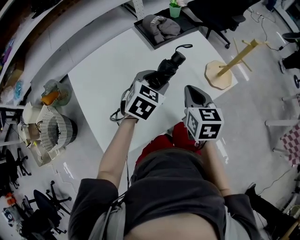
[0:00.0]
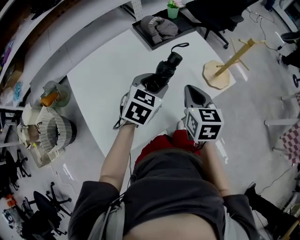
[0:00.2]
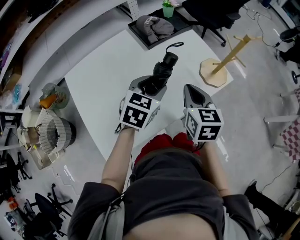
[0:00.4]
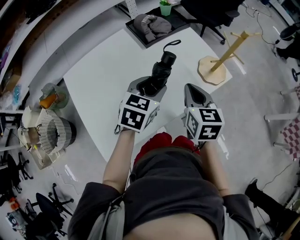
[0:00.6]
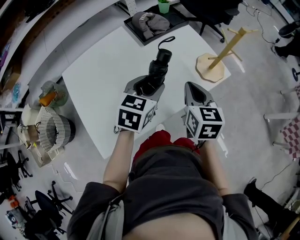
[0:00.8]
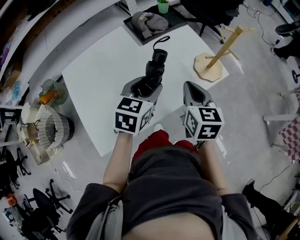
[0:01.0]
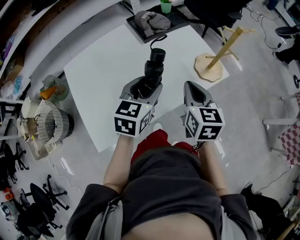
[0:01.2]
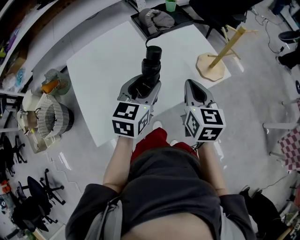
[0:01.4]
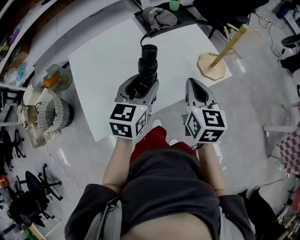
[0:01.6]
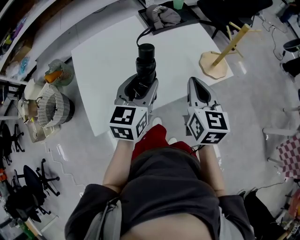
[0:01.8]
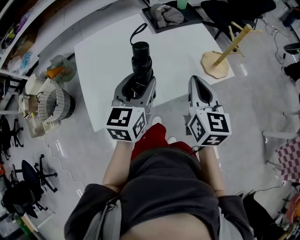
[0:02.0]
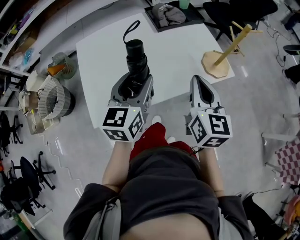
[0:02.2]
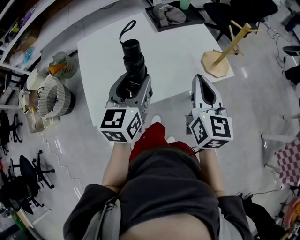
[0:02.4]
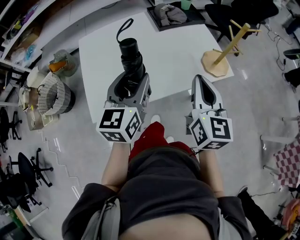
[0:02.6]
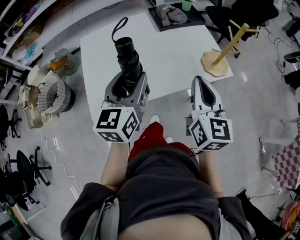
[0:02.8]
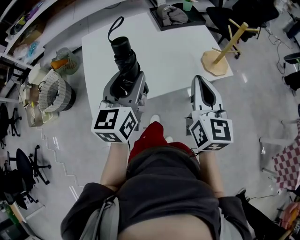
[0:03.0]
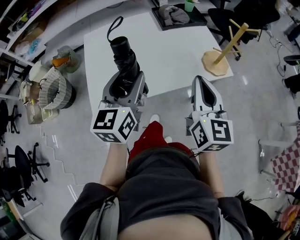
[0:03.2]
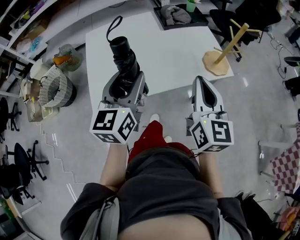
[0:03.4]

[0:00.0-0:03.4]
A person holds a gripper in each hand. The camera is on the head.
0:00.0 to 0:01.6: The left gripper is displaced backward and upward by about 10 cm, and changes its angle by some 30 degrees; the right gripper goes approximately 5 cm to the right.
0:01.6 to 0:03.4: The left gripper travels backward, upward and to the left by about 15 cm, and swivels about 20 degrees. The right gripper travels backward and upward by about 10 cm.

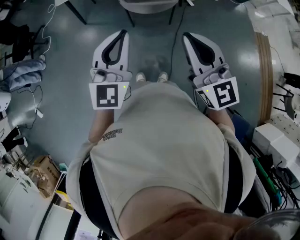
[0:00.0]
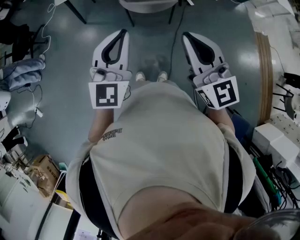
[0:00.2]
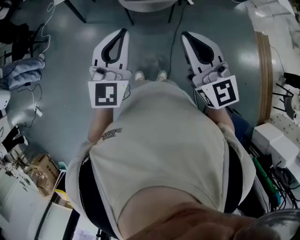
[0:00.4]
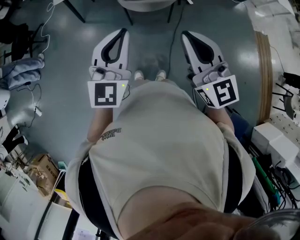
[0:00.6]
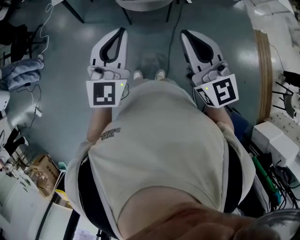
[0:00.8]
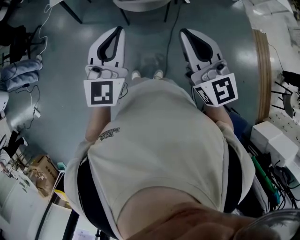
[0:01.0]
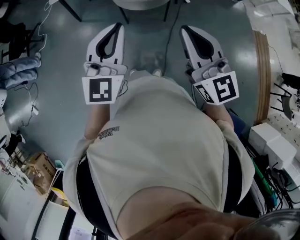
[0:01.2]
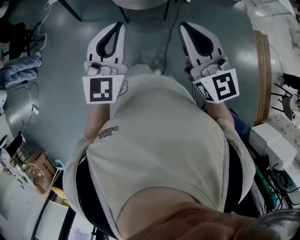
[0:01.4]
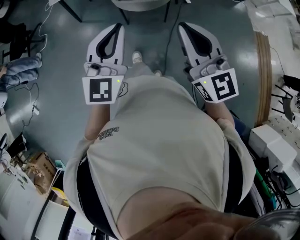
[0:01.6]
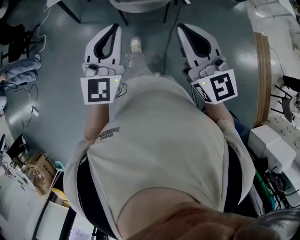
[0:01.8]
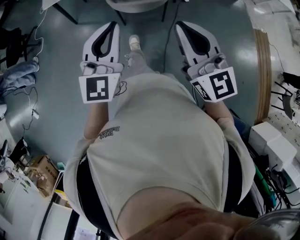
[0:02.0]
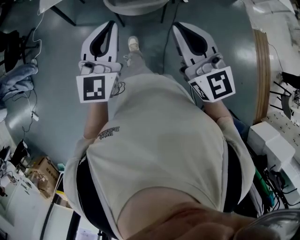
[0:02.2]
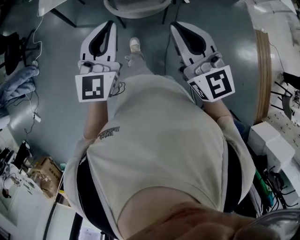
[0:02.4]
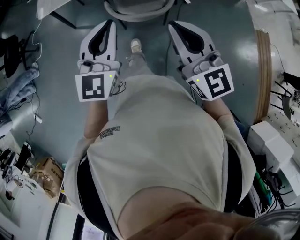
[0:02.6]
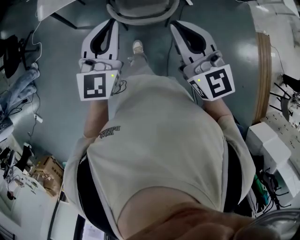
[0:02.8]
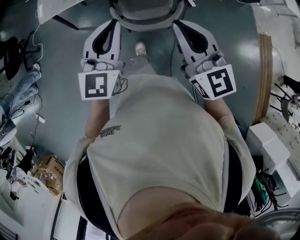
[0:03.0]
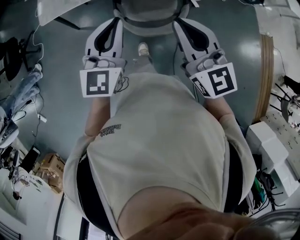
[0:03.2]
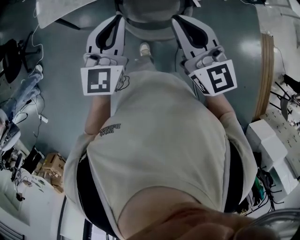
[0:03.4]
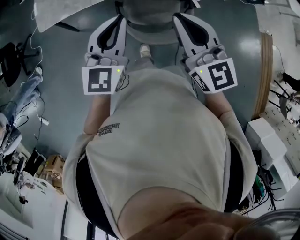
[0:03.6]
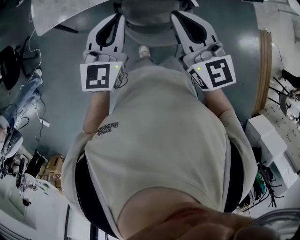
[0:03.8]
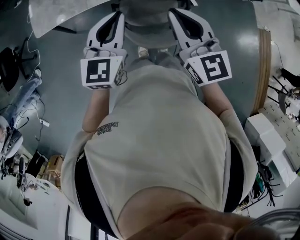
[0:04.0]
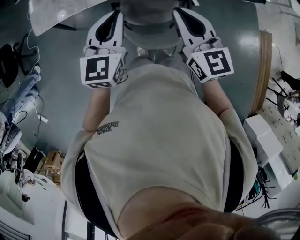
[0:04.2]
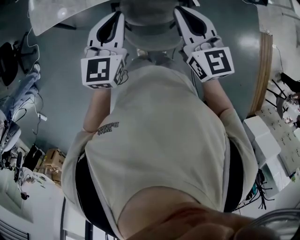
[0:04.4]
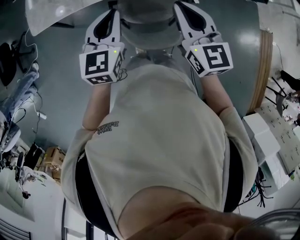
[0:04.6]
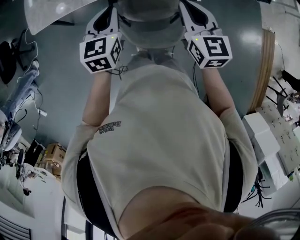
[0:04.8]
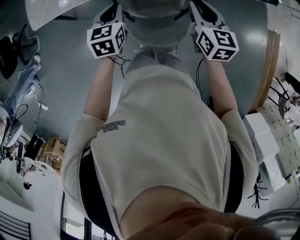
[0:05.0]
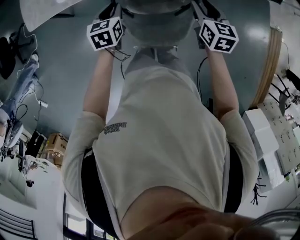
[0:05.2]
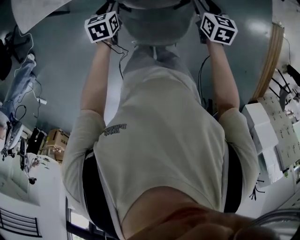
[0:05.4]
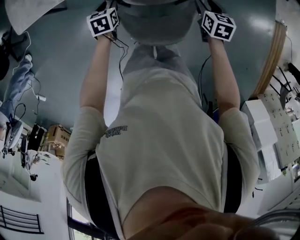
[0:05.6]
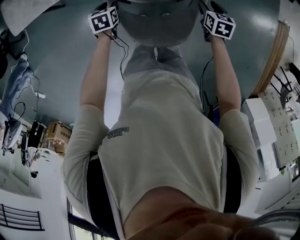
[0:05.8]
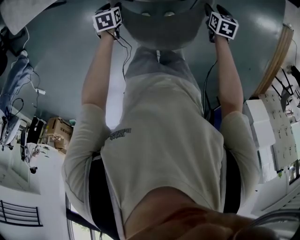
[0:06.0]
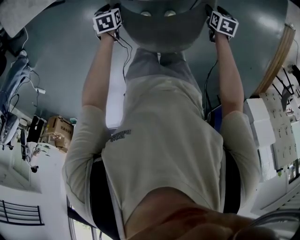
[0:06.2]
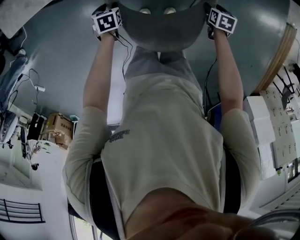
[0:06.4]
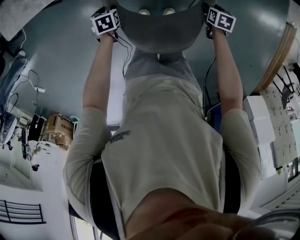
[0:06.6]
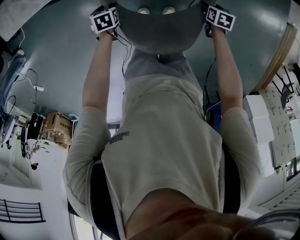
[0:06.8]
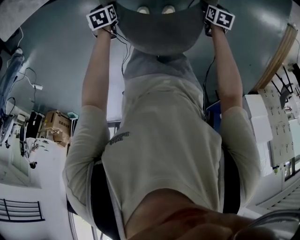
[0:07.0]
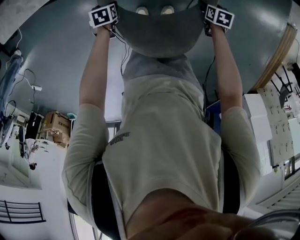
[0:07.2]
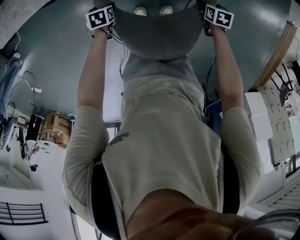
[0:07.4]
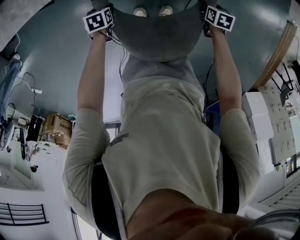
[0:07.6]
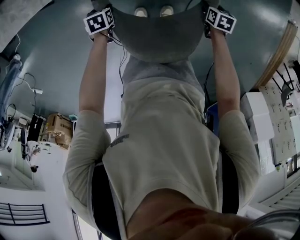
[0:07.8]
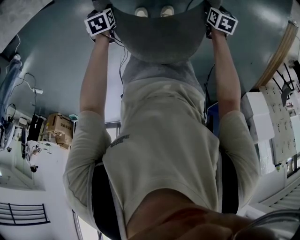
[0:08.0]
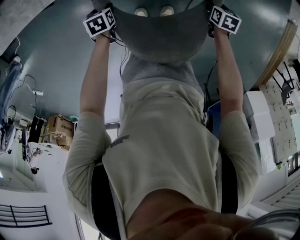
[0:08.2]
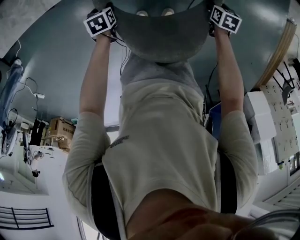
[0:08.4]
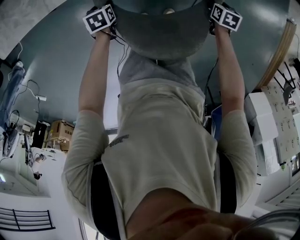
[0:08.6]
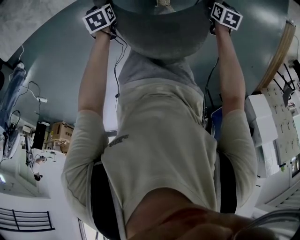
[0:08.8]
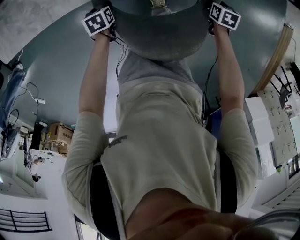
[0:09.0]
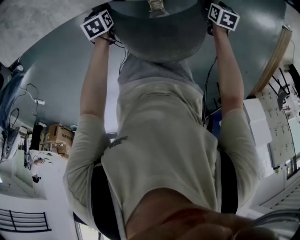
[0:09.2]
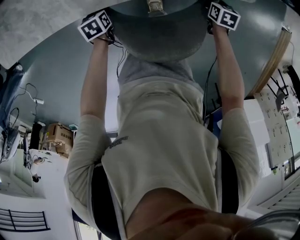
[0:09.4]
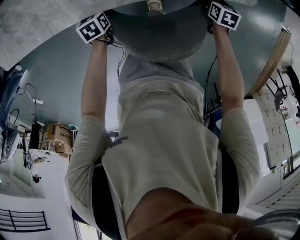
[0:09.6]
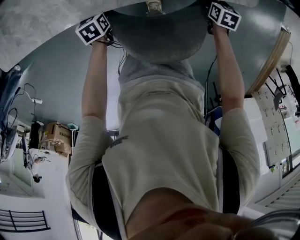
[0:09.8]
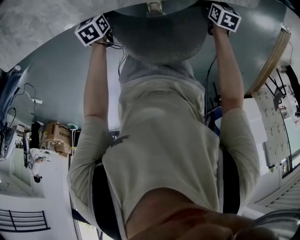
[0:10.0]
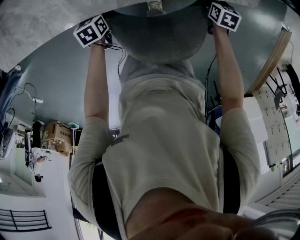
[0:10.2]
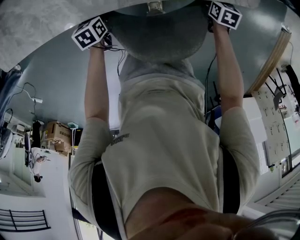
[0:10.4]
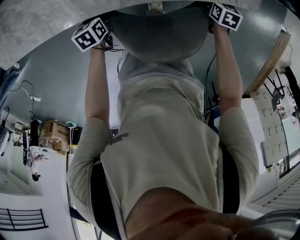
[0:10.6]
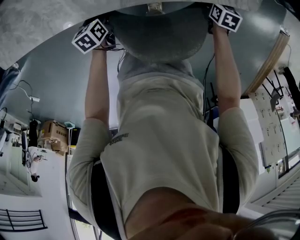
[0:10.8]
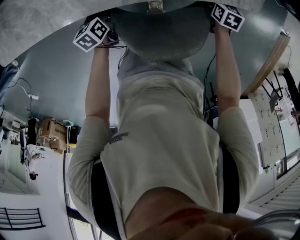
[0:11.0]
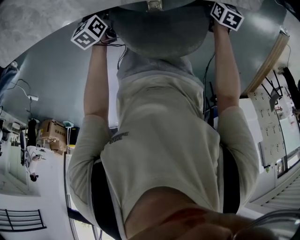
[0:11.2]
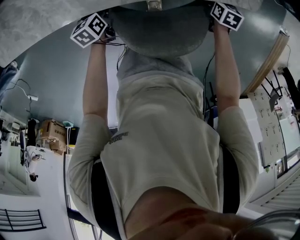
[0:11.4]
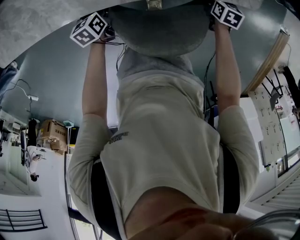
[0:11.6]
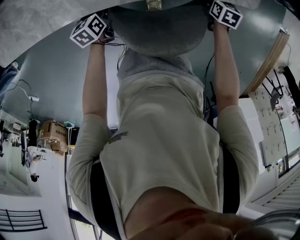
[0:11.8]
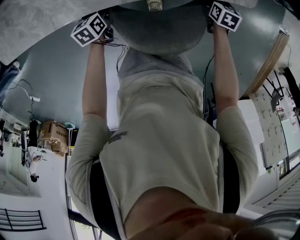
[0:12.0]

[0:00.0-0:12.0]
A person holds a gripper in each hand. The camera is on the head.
0:00.0 to 0:01.6: Both grippers move to the right, about 5 cm.
0:01.6 to 0:03.0: Both grippers travel together forward, about 30 cm.
0:03.0 to 0:04.4: Both grippers move forward, about 20 cm.
0:04.4 to 0:06.0: The left gripper goes approximately 50 cm downward, tips its fingers downward by about 50 degrees, and opens, while the right gripper is displaced downward and to the right by roughly 50 cm, tips its fingers downward by about 50 degrees, and opens up.
0:06.0 to 0:07.6: The two grippers go approximately 10 cm downward.
0:07.6 to 0:09.0: The left gripper shifts by some 10 cm, while the right gripper shifts by some 10 cm.
0:09.0 to 0:10.4: The right gripper shifts about 10 cm forward, while the left gripper shifts by some 5 cm.
0:10.4 to 0:12.0: There are only small adjustments of the grippers.

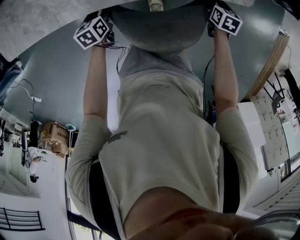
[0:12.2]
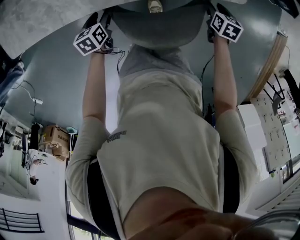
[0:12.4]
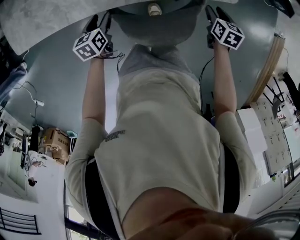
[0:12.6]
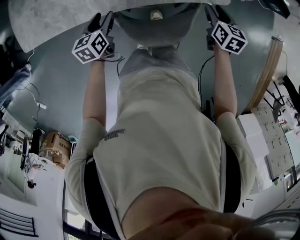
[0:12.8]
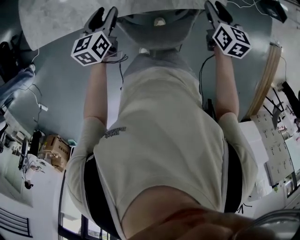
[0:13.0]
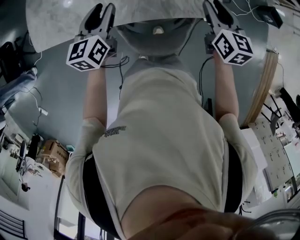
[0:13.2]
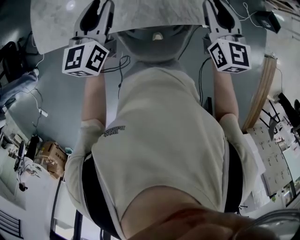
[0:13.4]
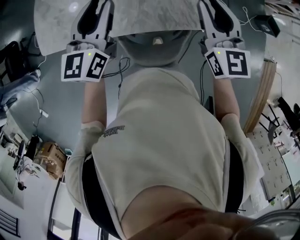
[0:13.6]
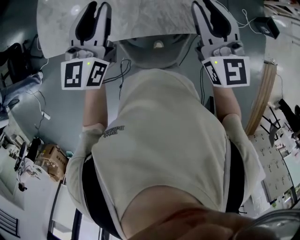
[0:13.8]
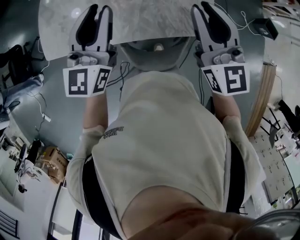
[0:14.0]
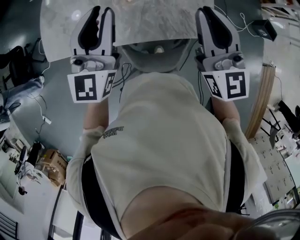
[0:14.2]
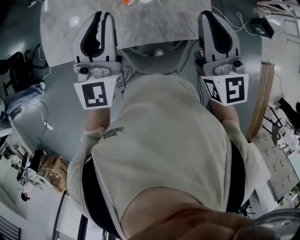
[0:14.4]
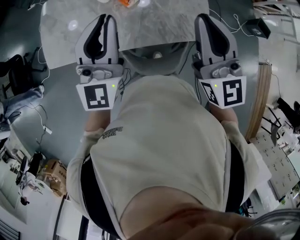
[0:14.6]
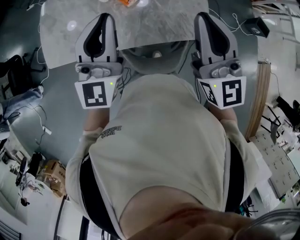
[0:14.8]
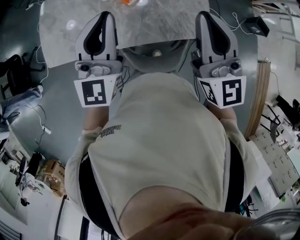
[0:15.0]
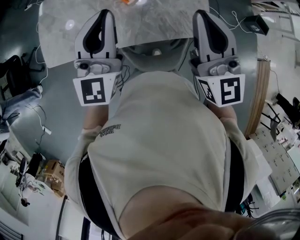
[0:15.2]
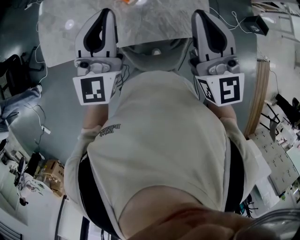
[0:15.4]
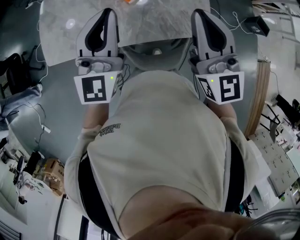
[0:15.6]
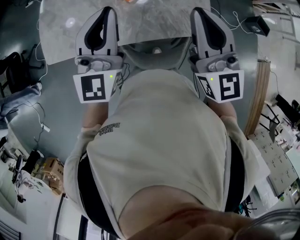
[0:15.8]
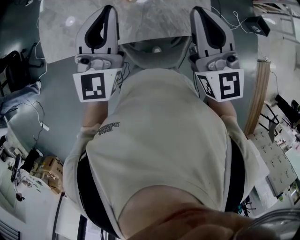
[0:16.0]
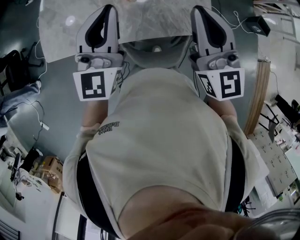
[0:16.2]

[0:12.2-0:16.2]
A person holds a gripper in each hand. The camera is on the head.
0:12.2 to 0:13.6: The grippers both shift upward by some 50 cm. The left gripper tips its fingers upward by some 50 degrees, and closes. The right gripper tips its fingers upward by some 60 degrees, and closes its fingers.
0:13.6 to 0:14.8: The right gripper travels upward, to the left and backward by some 15 cm; the left gripper travels upward by some 10 cm, changes its angle by roughly 30 degrees, and closes its fingers.
0:14.8 to 0:16.2: There are only small adjustments of the grippers.

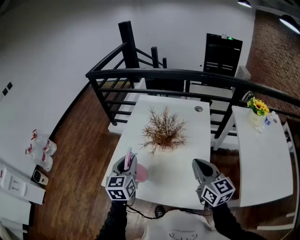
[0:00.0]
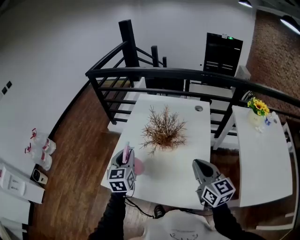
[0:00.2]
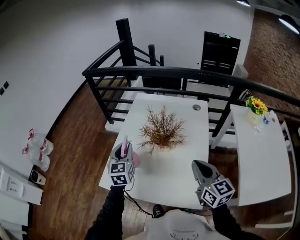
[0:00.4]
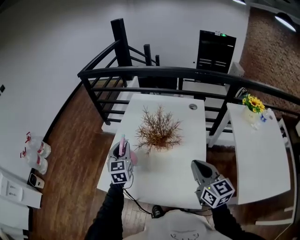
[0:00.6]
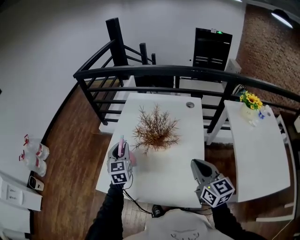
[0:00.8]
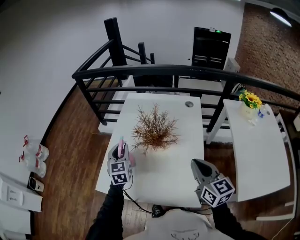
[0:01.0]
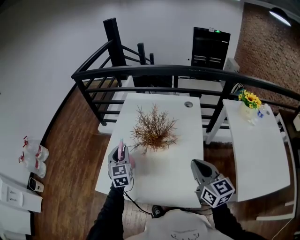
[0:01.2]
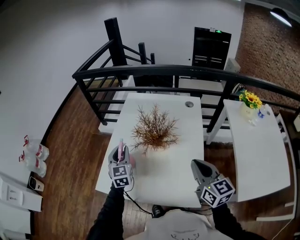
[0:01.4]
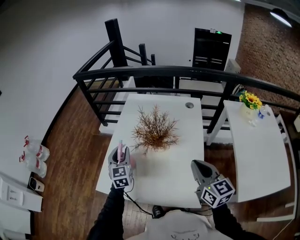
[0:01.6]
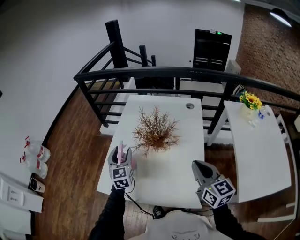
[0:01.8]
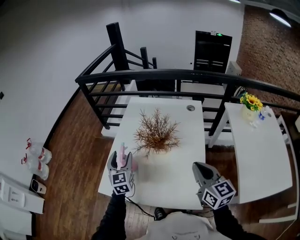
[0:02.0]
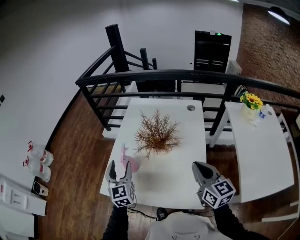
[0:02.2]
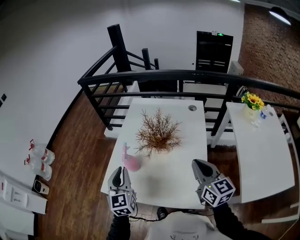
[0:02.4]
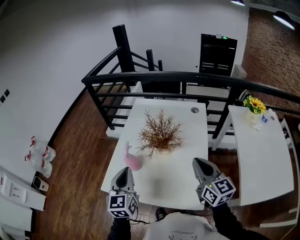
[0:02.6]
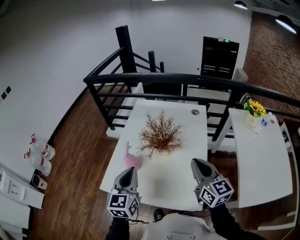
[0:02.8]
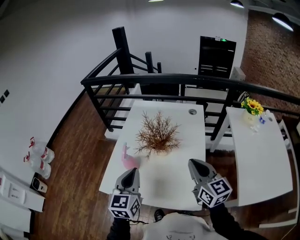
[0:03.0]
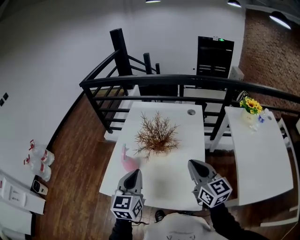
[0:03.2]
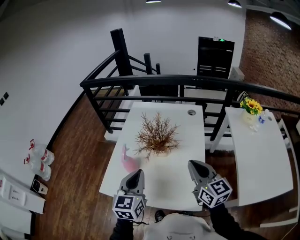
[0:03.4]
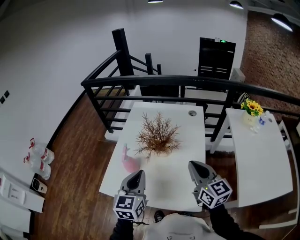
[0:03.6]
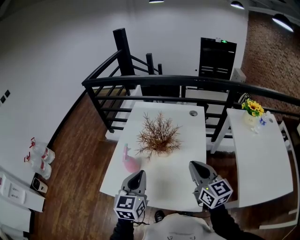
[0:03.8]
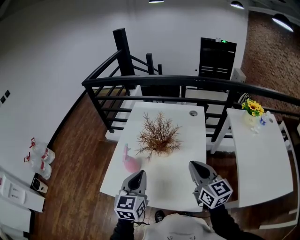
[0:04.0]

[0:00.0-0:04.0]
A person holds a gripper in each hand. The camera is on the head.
0:00.0 to 0:01.4: The left gripper goes about 10 cm forward and downward.
0:01.4 to 0:02.6: The left gripper heads backward and upward, covering roughly 15 cm, and closes up.
0:02.6 to 0:04.0: The left gripper shifts approximately 5 cm to the right.
